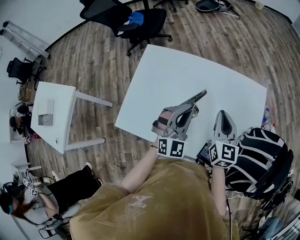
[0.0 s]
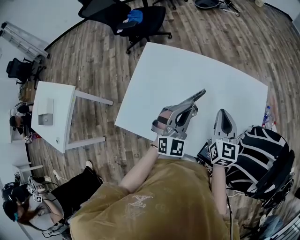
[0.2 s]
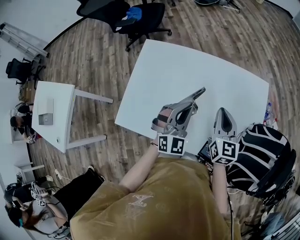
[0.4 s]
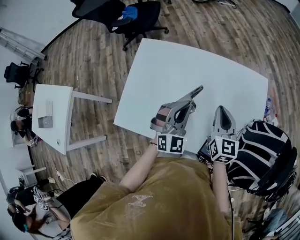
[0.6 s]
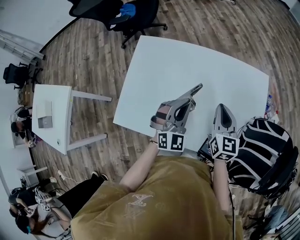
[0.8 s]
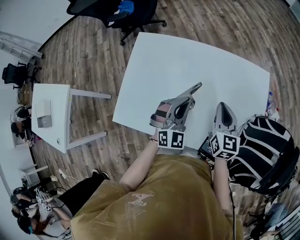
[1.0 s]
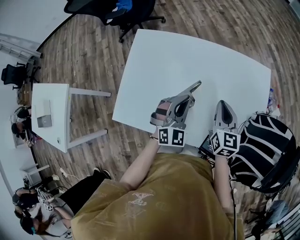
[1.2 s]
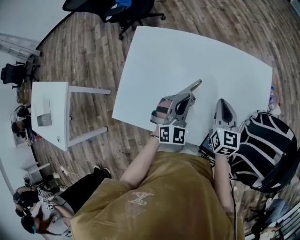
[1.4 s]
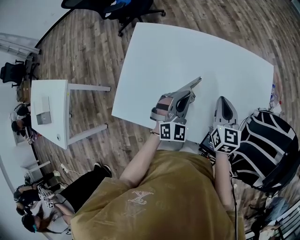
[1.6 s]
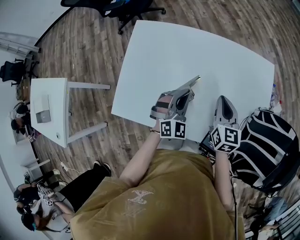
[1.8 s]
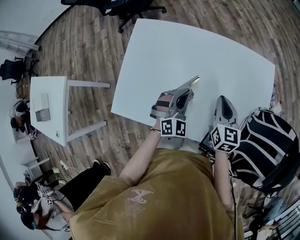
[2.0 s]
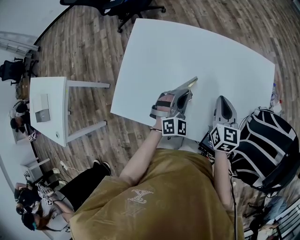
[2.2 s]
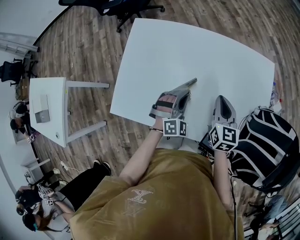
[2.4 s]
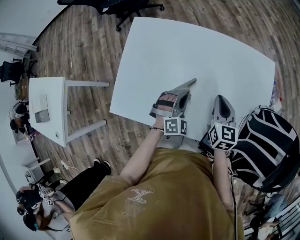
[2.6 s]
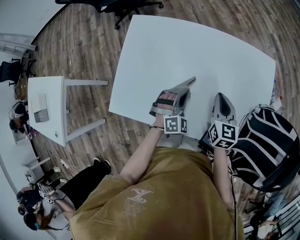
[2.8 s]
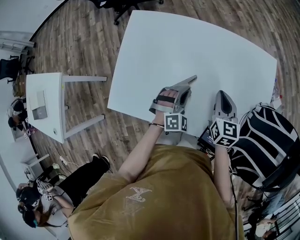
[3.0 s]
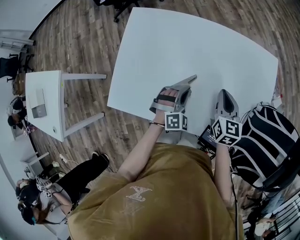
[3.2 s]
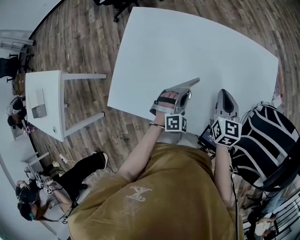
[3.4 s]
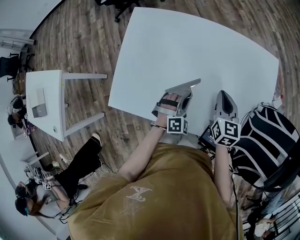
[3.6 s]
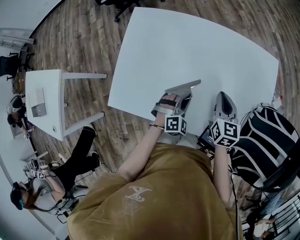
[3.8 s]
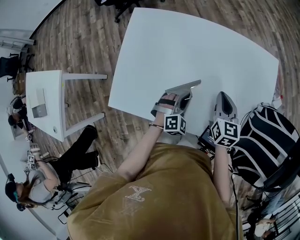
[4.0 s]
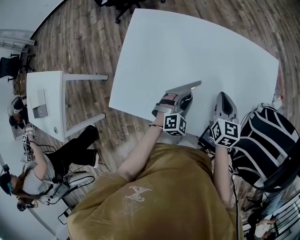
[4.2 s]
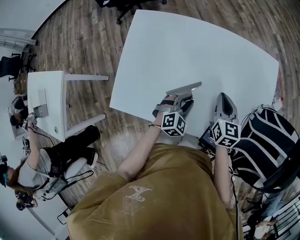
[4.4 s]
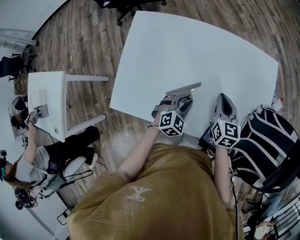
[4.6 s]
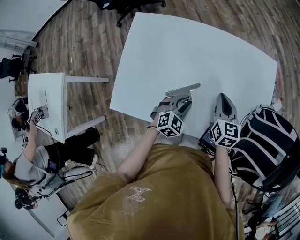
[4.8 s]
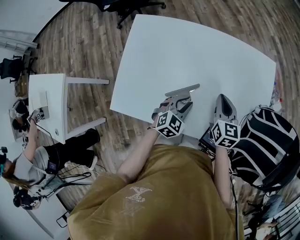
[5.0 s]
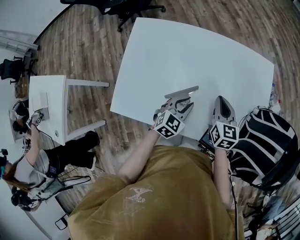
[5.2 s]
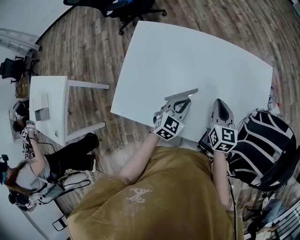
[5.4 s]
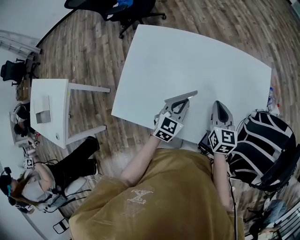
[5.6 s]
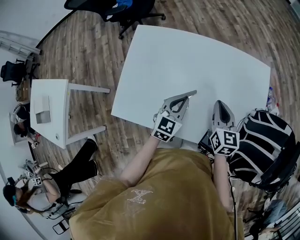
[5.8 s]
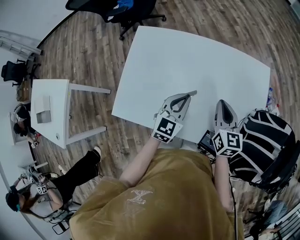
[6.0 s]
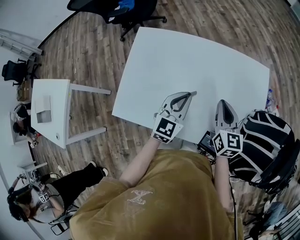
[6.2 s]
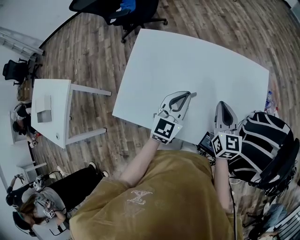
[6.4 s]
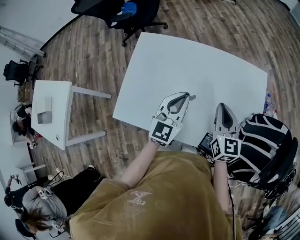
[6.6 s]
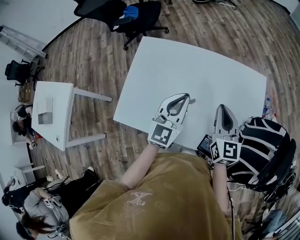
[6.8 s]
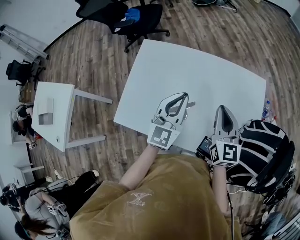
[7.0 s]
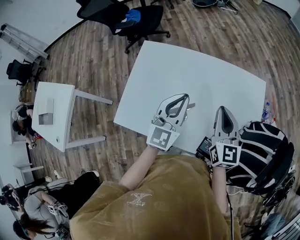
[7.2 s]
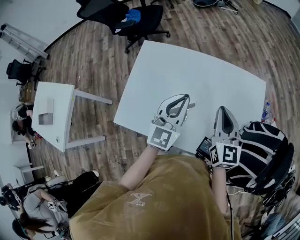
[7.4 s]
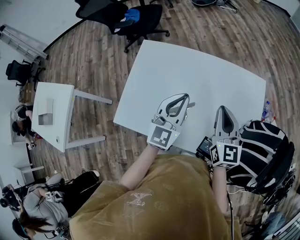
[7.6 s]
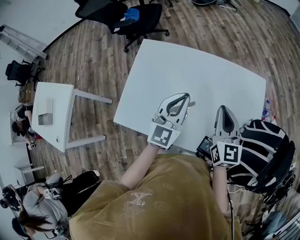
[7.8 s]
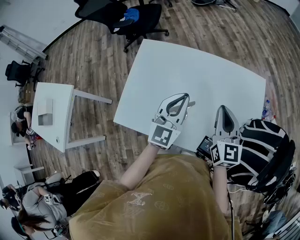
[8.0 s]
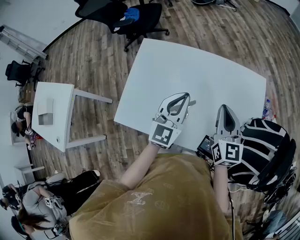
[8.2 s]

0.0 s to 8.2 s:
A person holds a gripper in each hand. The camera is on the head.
0.0 to 1.6 s: Both grippers move downward, approximately 10 cm.
1.6 to 3.2 s: The left gripper travels downward by approximately 10 cm, and changes its angle by roughly 20 degrees.
3.2 to 5.0 s: The left gripper swivels some 40 degrees.
5.0 to 6.6 s: The left gripper shifts about 20 cm upward, points its fingers roughly 30 degrees further upward, and closes its fingers. Meanwhile the right gripper heads upward, covering some 10 cm.
6.6 to 8.2 s: The grippers move only a little.

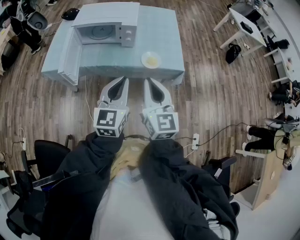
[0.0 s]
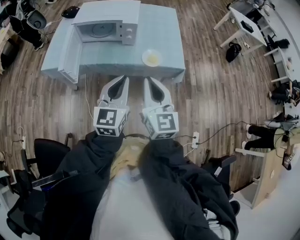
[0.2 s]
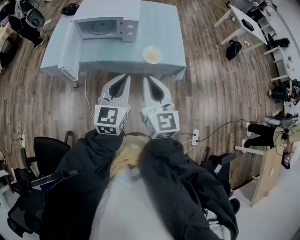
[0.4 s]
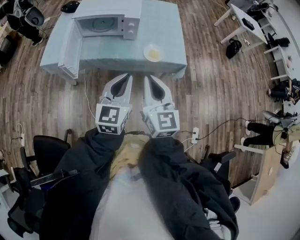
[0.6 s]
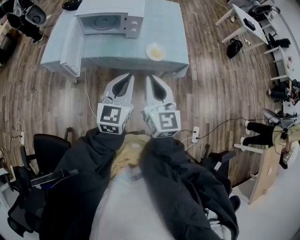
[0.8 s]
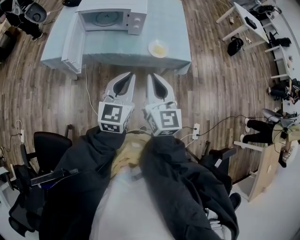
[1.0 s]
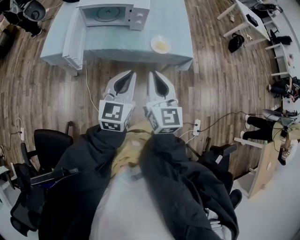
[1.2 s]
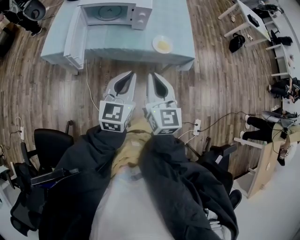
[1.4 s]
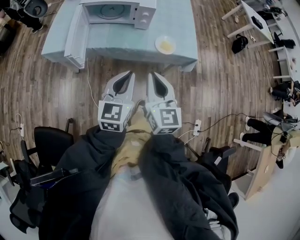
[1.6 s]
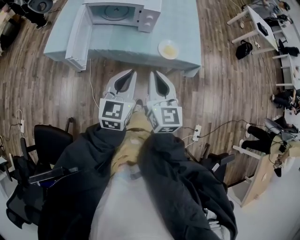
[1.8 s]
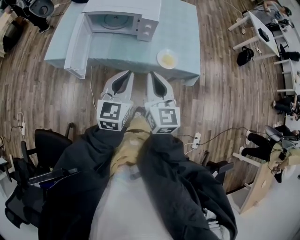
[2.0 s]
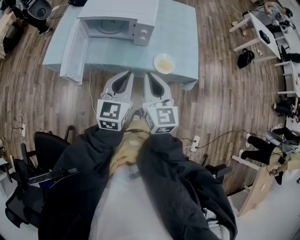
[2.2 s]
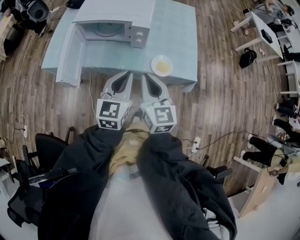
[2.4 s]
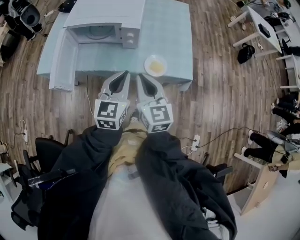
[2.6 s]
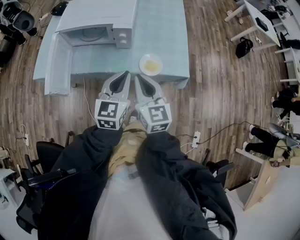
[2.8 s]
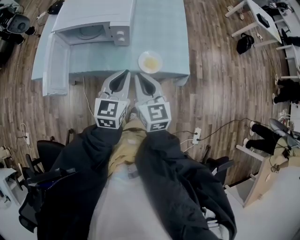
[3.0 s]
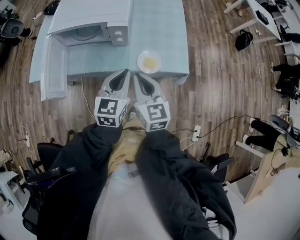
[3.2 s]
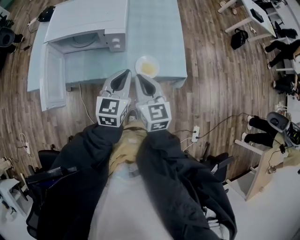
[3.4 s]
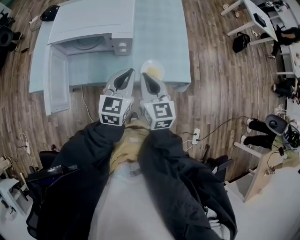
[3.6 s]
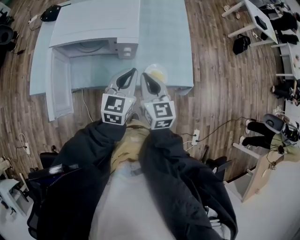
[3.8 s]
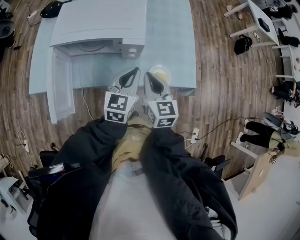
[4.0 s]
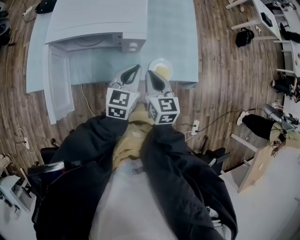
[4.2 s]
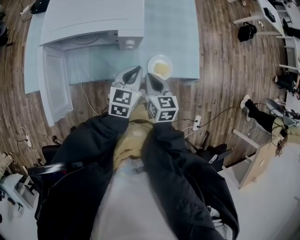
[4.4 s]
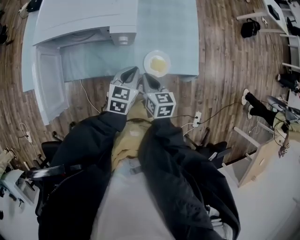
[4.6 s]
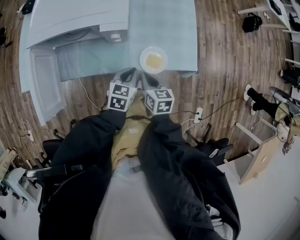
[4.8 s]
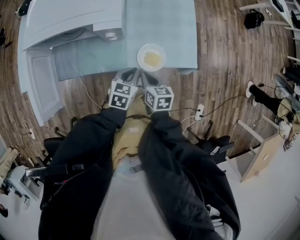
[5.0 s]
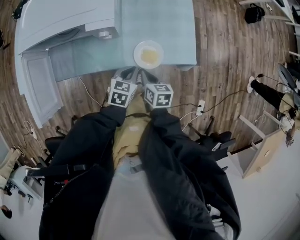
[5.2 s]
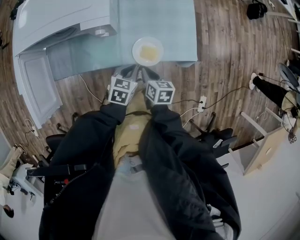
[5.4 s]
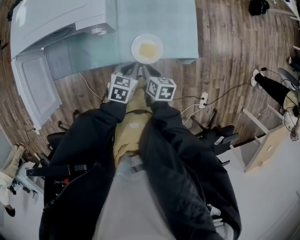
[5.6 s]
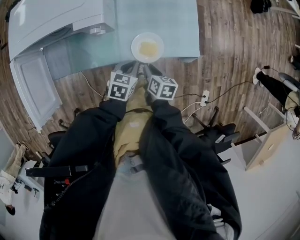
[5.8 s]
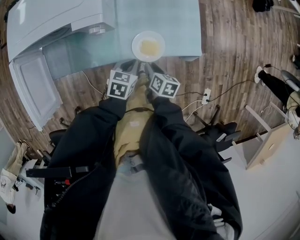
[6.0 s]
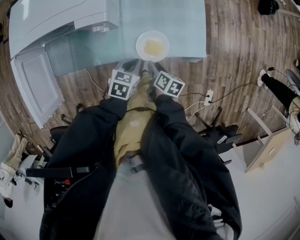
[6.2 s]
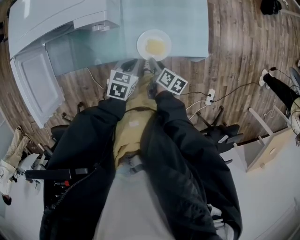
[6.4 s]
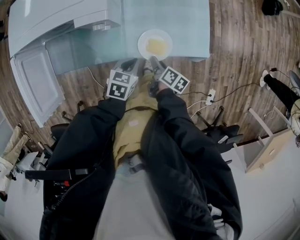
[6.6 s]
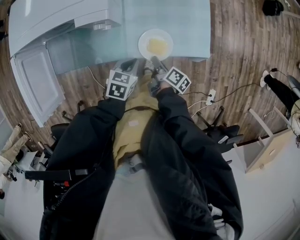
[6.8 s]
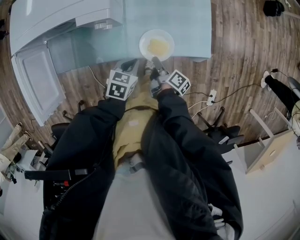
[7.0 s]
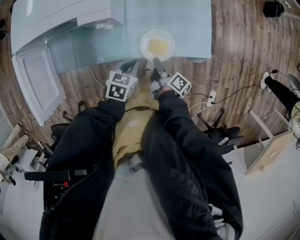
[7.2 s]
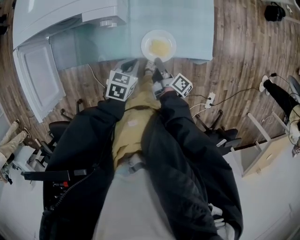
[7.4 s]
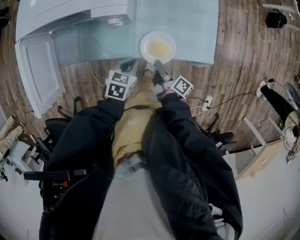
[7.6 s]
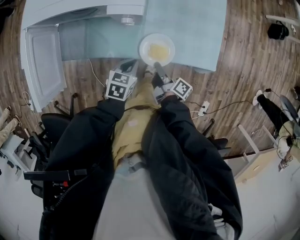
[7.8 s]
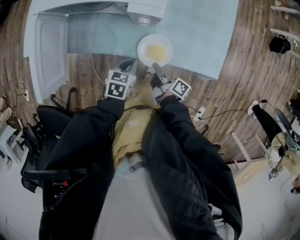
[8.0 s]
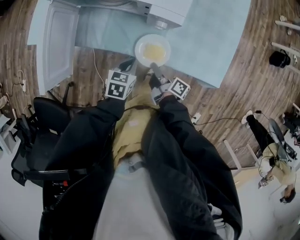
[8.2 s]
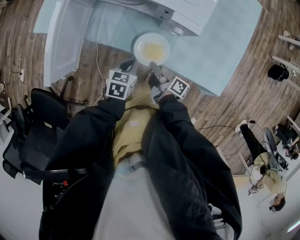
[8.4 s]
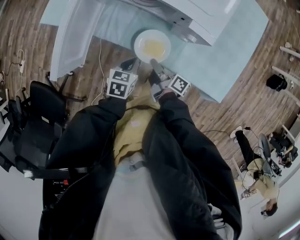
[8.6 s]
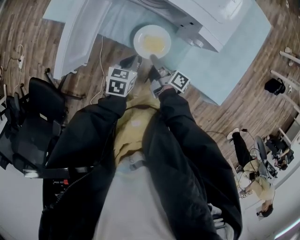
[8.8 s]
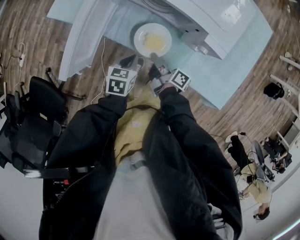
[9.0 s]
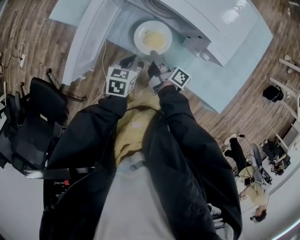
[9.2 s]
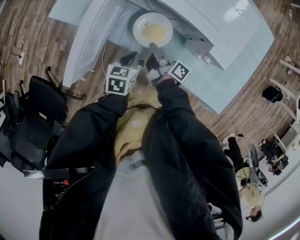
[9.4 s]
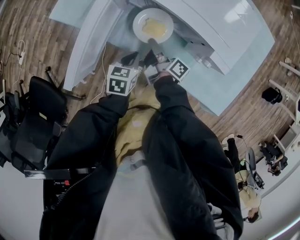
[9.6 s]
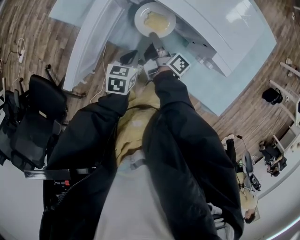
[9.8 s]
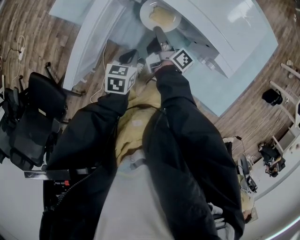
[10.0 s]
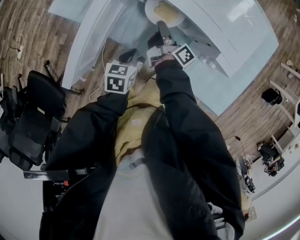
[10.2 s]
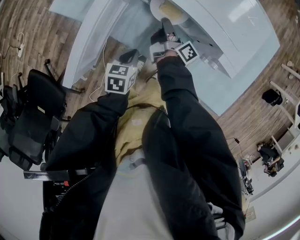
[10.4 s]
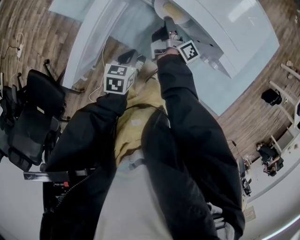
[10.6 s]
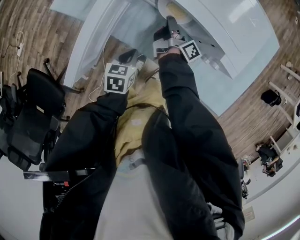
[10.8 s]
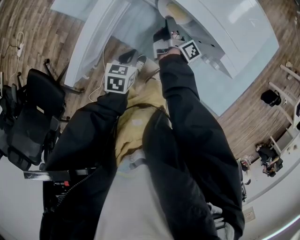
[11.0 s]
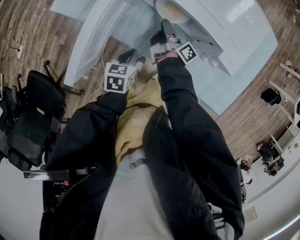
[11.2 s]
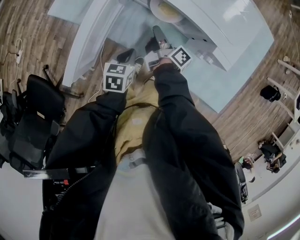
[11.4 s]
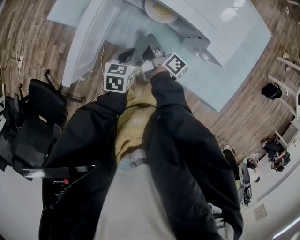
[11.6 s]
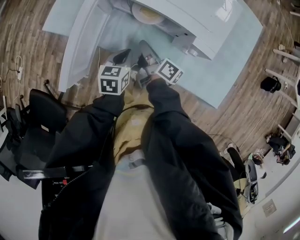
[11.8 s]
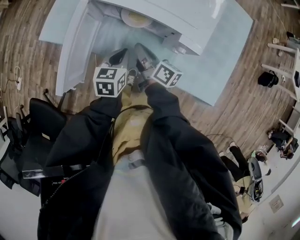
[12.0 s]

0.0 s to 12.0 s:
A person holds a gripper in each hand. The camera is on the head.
0.0 to 1.6 s: The left gripper is displaced to the left and downward by approximately 10 cm. Meanwhile the right gripper goes some 5 cm to the left.
1.6 to 3.0 s: The grippers both shift forward and to the right by about 20 cm.
3.0 to 4.4 s: The left gripper moves forward and downward, some 15 cm, while the right gripper goes approximately 15 cm downward and forward, and swivels approximately 20 degrees.
4.4 to 6.0 s: The two grippers go about 20 cm downward and to the right. The right gripper swivels about 40 degrees, and opens up. The left gripper swivels approximately 30 degrees.
6.0 to 7.6 s: The right gripper changes its angle by roughly 40 degrees, and closes its fingers.
7.6 to 9.0 s: The left gripper changes place by roughly 25 cm, and rotates approximately 40 degrees, while the right gripper changes place by roughly 25 cm, and changes its angle by approximately 30 degrees.
9.0 to 10.4 s: The left gripper shifts by roughly 5 cm, while the right gripper heads forward, covering approximately 15 cm.
10.4 to 12.0 s: The left gripper moves upward and to the right, some 10 cm. The right gripper shifts about 15 cm upward and backward, and swivels about 30 degrees.

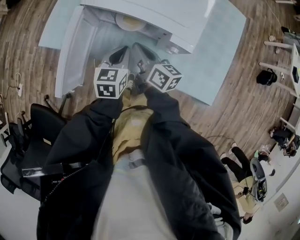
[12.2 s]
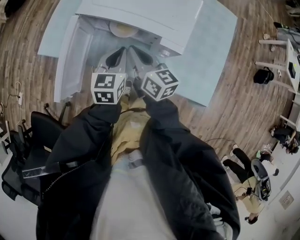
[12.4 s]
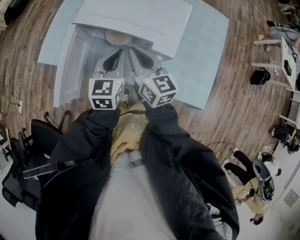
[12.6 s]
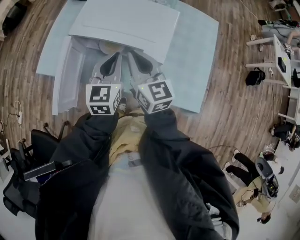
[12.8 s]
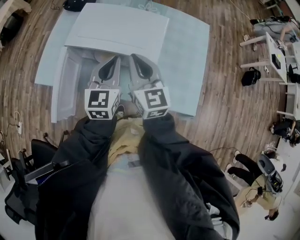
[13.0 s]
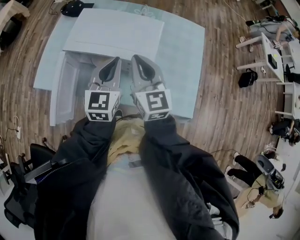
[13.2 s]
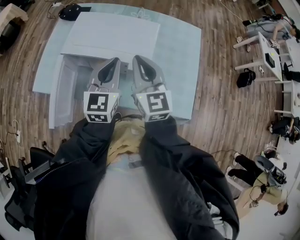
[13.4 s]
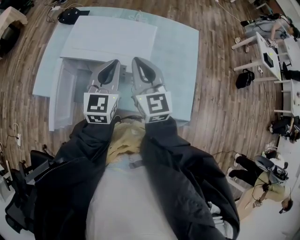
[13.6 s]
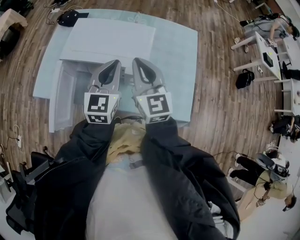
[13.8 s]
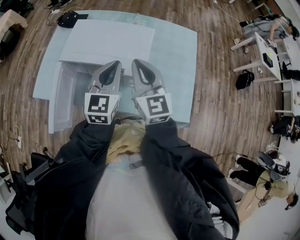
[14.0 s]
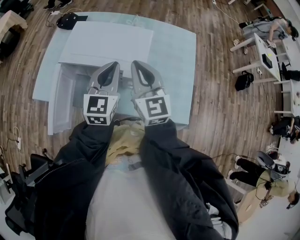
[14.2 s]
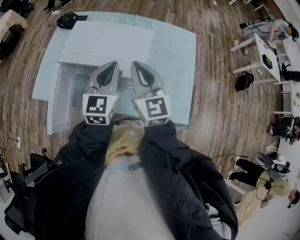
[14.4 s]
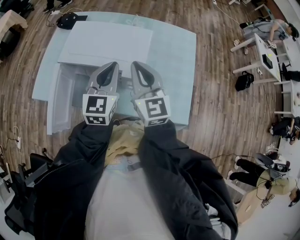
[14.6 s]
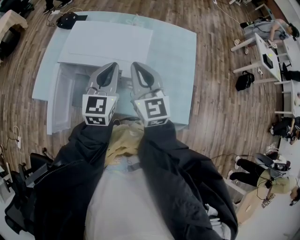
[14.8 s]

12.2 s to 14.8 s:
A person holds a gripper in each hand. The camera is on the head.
12.2 to 13.4 s: The grippers both shift upward and to the right by about 25 cm. The right gripper rolls counterclockwise, seen from behind, by some 50 degrees. Meanwhile the left gripper rotates about 30 degrees.
13.4 to 14.8 s: There are only small adjustments of the grippers.

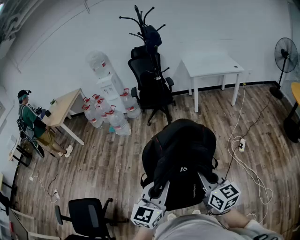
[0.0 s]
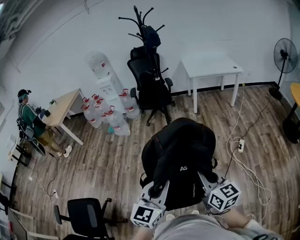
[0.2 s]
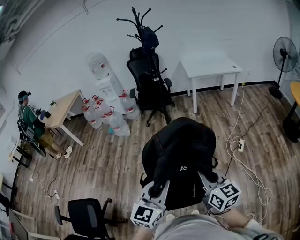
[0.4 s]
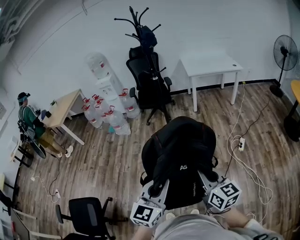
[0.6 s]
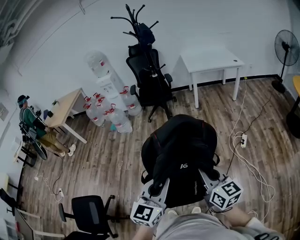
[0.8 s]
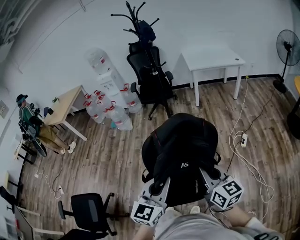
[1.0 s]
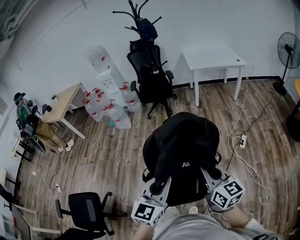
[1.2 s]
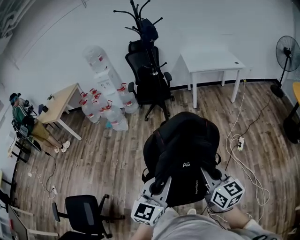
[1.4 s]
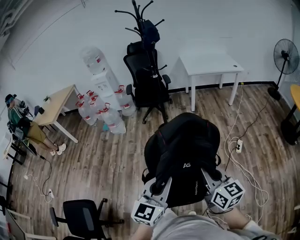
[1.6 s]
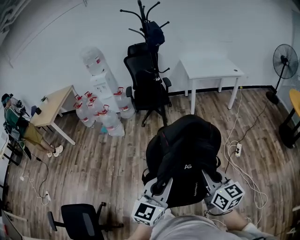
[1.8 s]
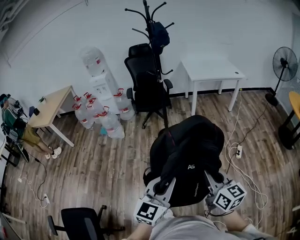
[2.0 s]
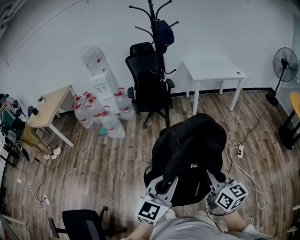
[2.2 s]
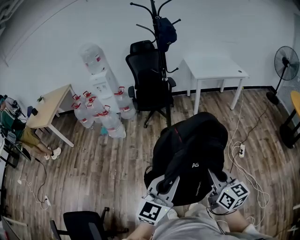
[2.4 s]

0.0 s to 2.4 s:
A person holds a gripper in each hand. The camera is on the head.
0.0 to 1.2 s: Both grippers move to the right, about 5 cm.
1.2 to 2.4 s: Both grippers travel together to the left and forward, about 20 cm.
